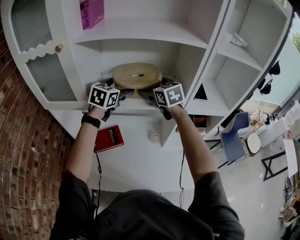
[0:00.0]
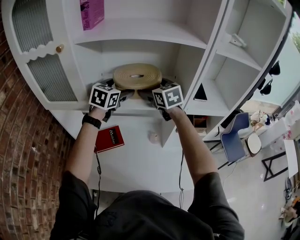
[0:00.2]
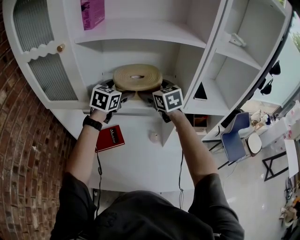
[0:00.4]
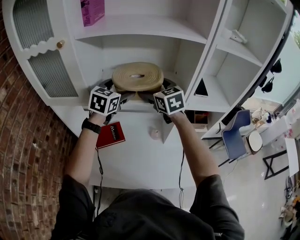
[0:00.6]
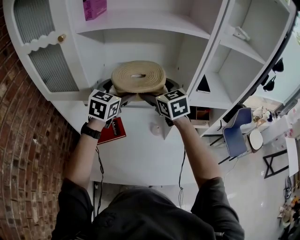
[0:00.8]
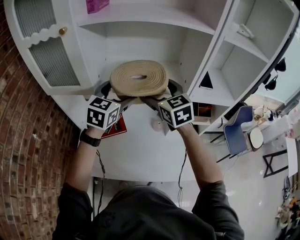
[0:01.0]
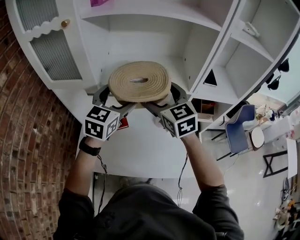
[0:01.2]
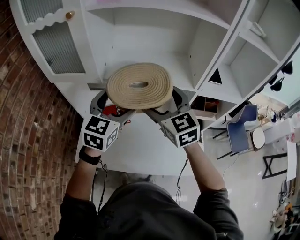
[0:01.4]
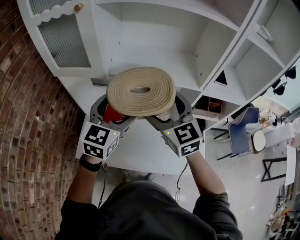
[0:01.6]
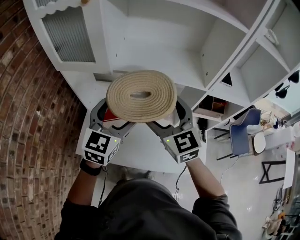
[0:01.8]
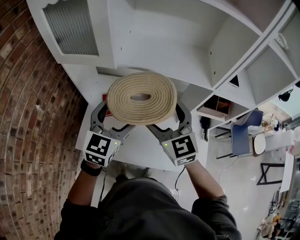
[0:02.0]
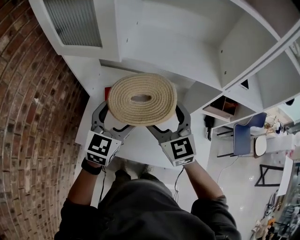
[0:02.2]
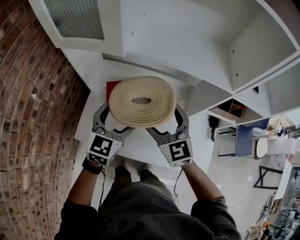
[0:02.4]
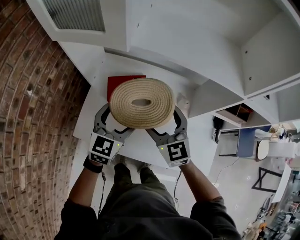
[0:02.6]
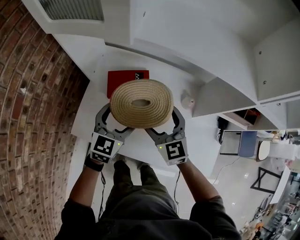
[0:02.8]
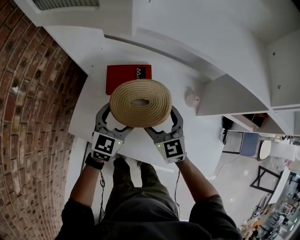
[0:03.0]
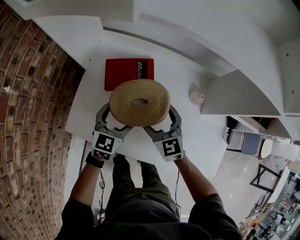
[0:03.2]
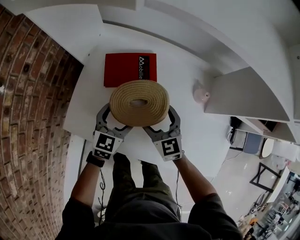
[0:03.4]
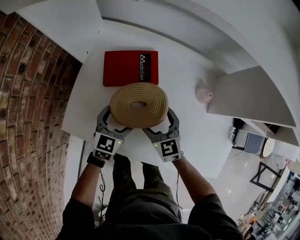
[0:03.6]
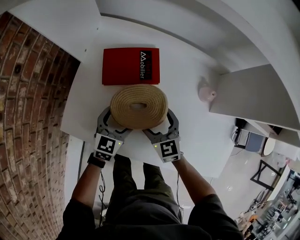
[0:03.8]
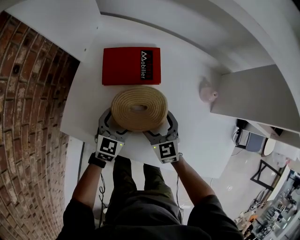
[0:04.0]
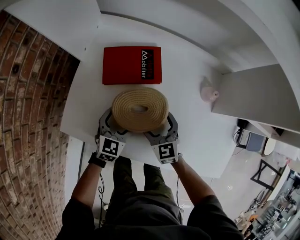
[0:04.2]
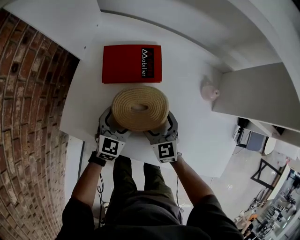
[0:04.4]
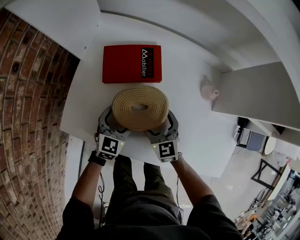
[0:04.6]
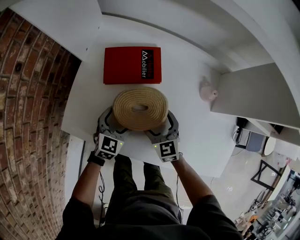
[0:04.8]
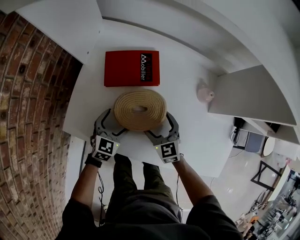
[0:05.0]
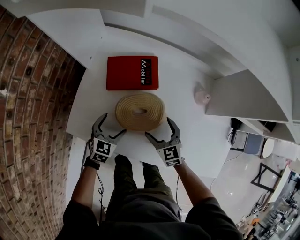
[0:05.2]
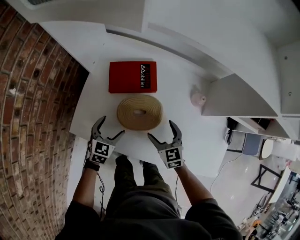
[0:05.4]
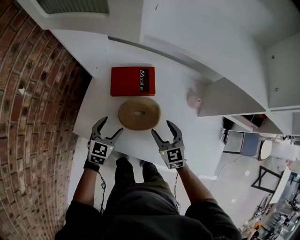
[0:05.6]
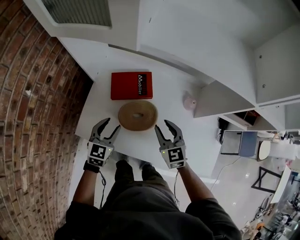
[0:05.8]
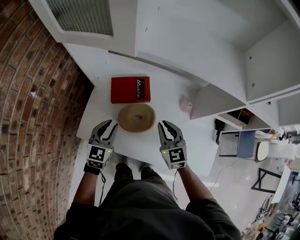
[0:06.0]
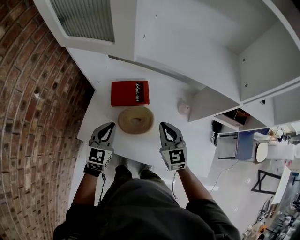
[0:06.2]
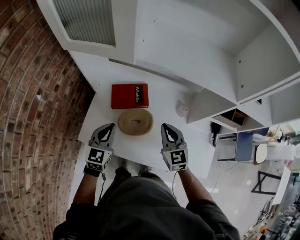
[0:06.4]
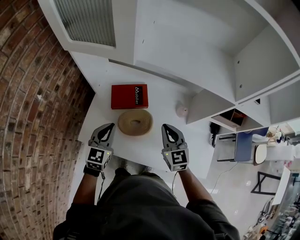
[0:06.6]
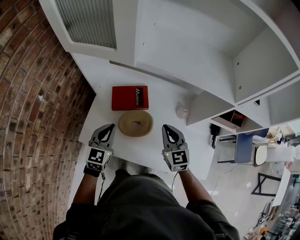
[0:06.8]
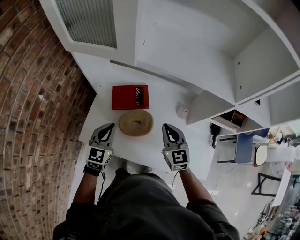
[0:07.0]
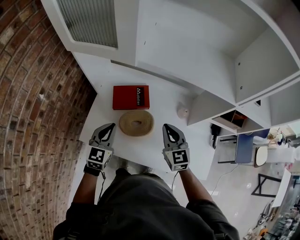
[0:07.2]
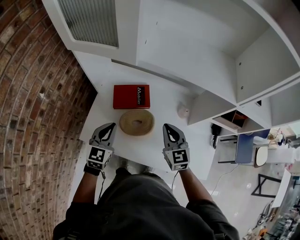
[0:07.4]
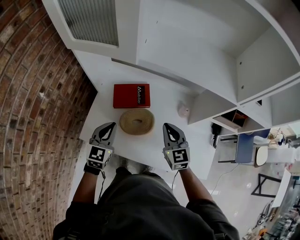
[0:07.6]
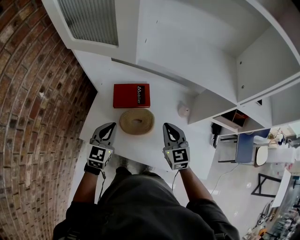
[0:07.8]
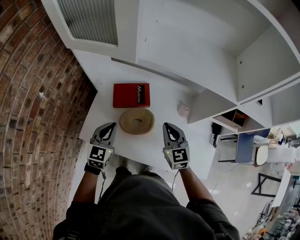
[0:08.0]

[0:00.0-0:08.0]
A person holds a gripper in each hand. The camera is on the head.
0:00.0 to 0:01.6: Both grippers move backward, about 20 cm.
0:01.6 to 0:03.2: Both grippers travel together downward, about 35 cm.
0:03.2 to 0:04.8: The grippers both shift downward by some 15 cm.
0:04.8 to 0:06.4: The two grippers go roughly 25 cm upward. The right gripper closes its fingers. Meanwhile the left gripper closes.
0:06.4 to 0:08.0: The two grippers keep their place.

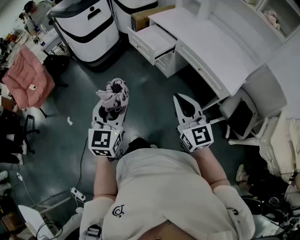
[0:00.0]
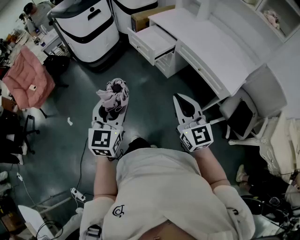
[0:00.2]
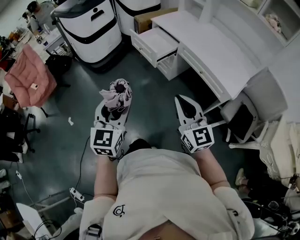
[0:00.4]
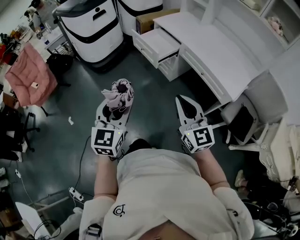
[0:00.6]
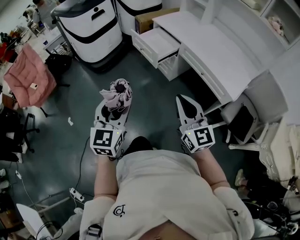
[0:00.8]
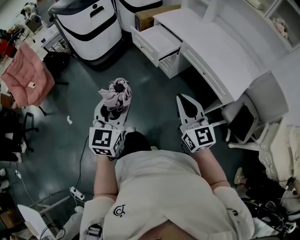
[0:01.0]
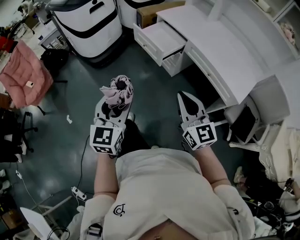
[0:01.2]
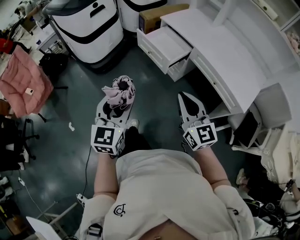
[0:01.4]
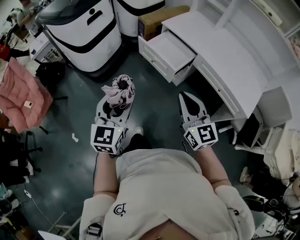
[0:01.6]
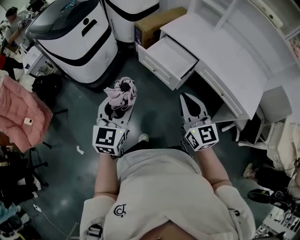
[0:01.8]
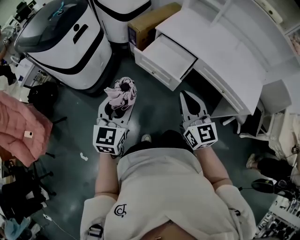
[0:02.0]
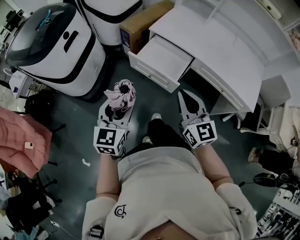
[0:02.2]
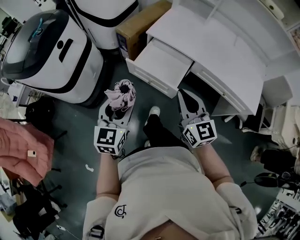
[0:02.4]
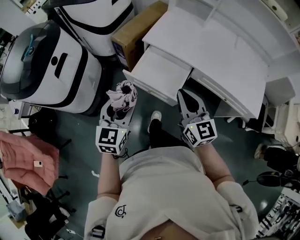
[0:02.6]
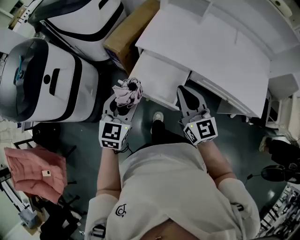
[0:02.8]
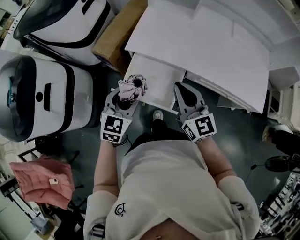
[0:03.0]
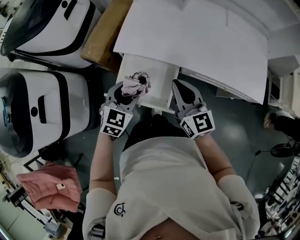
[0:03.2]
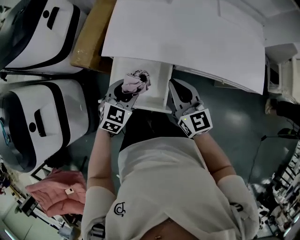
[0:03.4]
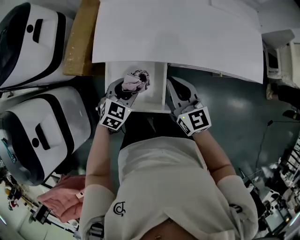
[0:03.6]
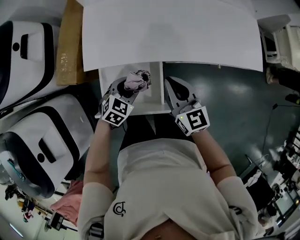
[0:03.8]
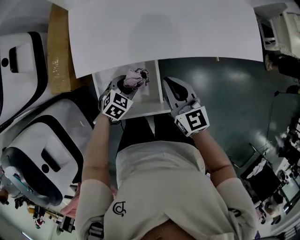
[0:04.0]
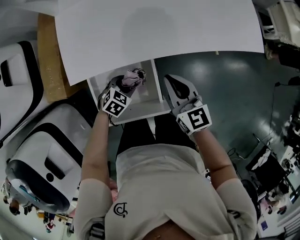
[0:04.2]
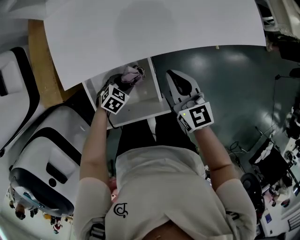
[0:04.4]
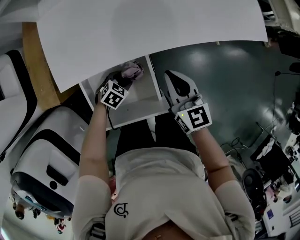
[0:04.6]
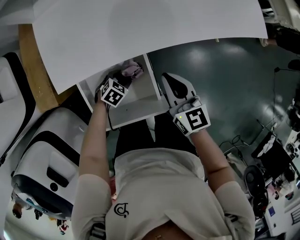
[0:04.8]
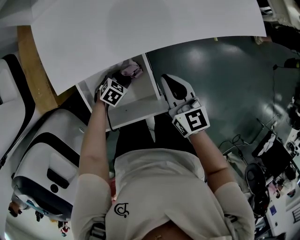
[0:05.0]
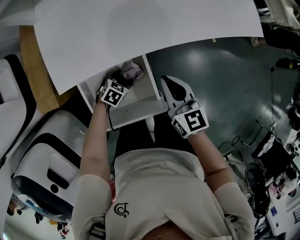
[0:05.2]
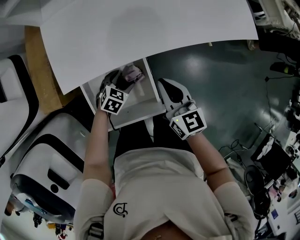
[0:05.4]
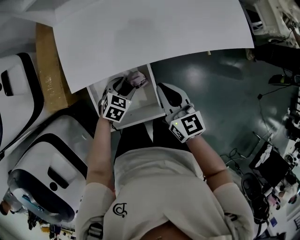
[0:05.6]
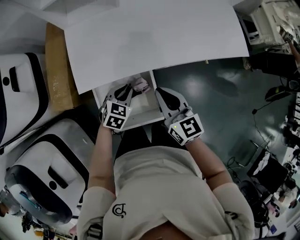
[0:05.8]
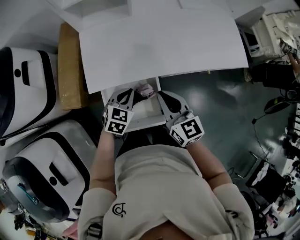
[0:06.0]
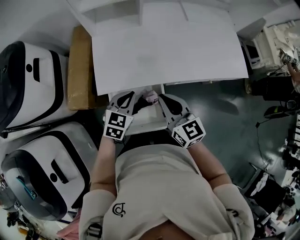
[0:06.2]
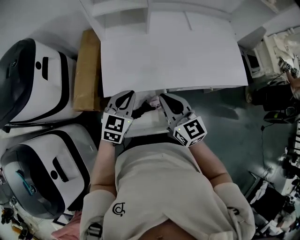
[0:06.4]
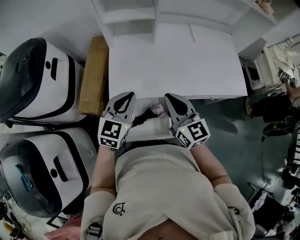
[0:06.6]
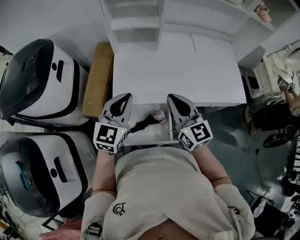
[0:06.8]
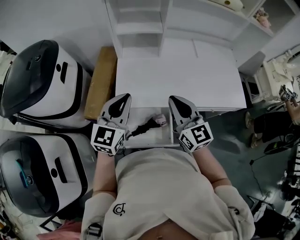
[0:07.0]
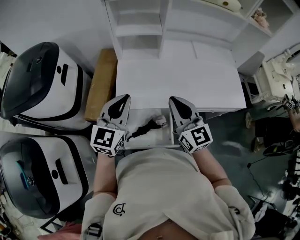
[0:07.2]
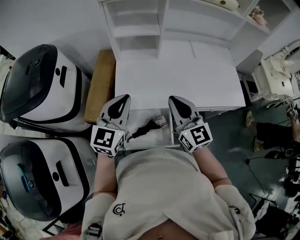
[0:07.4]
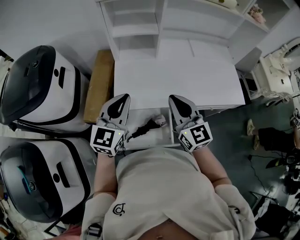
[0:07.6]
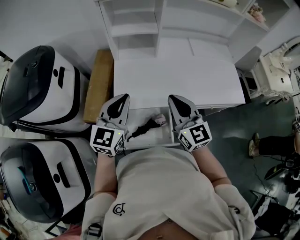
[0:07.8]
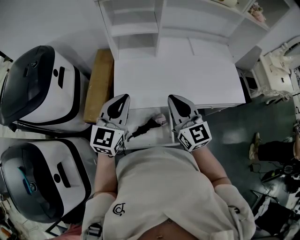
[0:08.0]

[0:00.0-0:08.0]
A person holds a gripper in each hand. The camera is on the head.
0:00.0 to 0:01.6: The grippers both shift forward and to the left by some 30 cm.
0:01.6 to 0:03.2: The left gripper ends up about 50 cm from where it was, and swivels approximately 50 degrees, while the right gripper moves approximately 40 cm, and swivels some 30 degrees.
0:03.2 to 0:04.8: The right gripper travels downward by roughly 15 cm, and changes its angle by approximately 30 degrees; the left gripper heads downward, covering roughly 35 cm, and tilts its fingers about 30 degrees downward.
0:04.8 to 0:06.4: The right gripper heads upward, covering about 20 cm, and swivels some 20 degrees; the left gripper heads upward, covering about 40 cm, tilts its fingers some 40 degrees upward, and closes its fingers.
0:06.4 to 0:08.0: The right gripper is displaced upward by some 10 cm. The left gripper travels upward and to the left by some 15 cm, and swivels about 20 degrees.

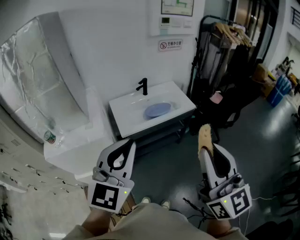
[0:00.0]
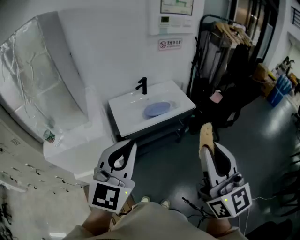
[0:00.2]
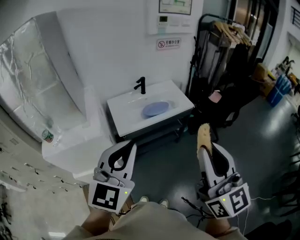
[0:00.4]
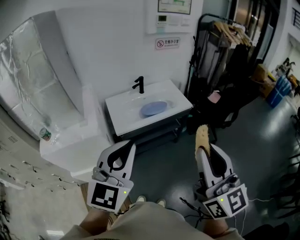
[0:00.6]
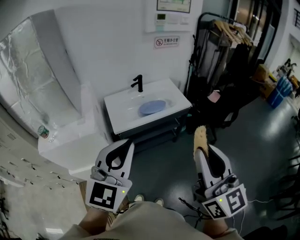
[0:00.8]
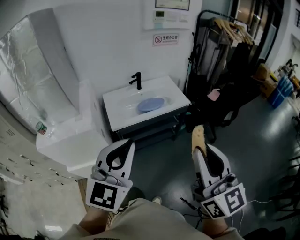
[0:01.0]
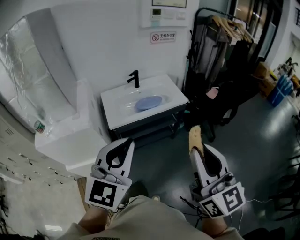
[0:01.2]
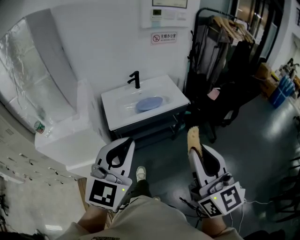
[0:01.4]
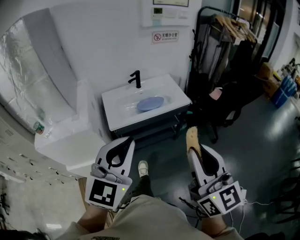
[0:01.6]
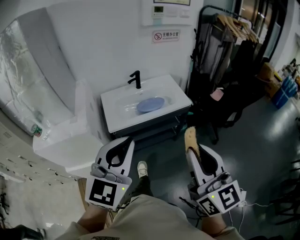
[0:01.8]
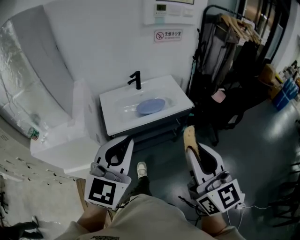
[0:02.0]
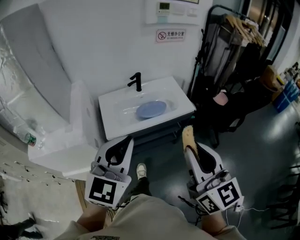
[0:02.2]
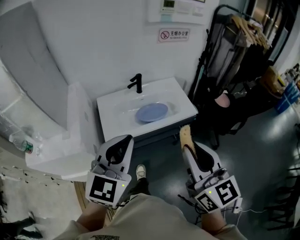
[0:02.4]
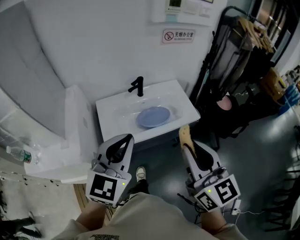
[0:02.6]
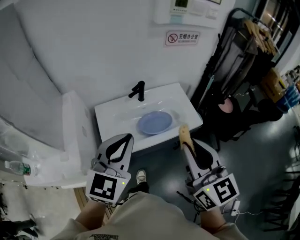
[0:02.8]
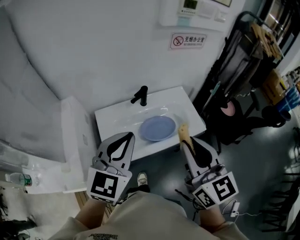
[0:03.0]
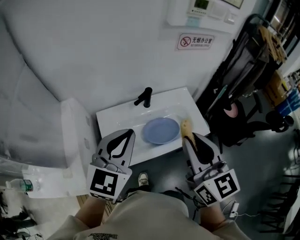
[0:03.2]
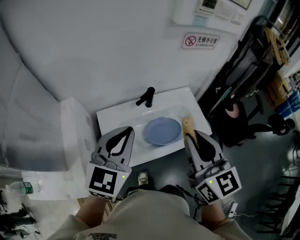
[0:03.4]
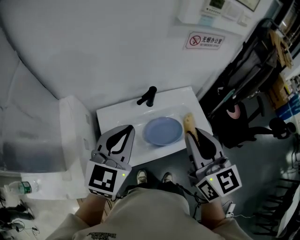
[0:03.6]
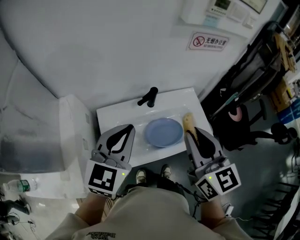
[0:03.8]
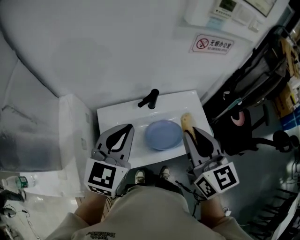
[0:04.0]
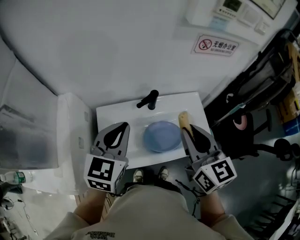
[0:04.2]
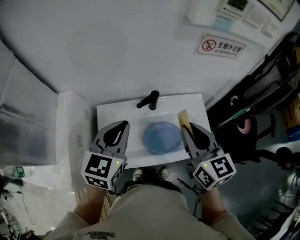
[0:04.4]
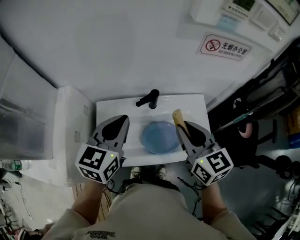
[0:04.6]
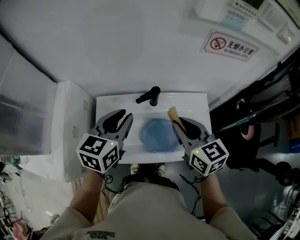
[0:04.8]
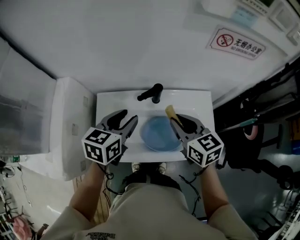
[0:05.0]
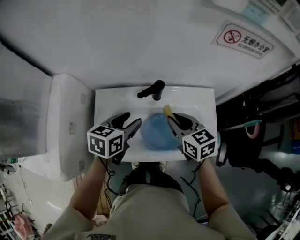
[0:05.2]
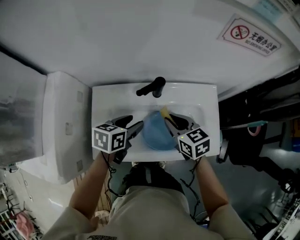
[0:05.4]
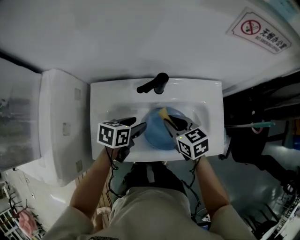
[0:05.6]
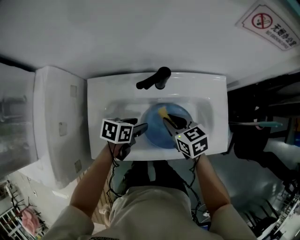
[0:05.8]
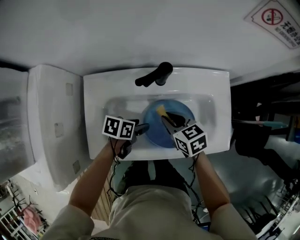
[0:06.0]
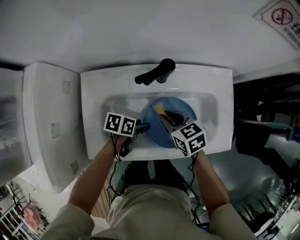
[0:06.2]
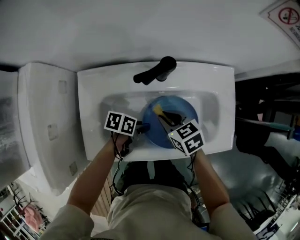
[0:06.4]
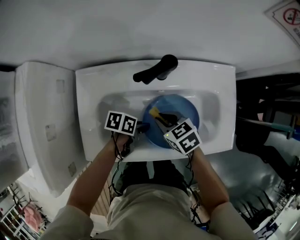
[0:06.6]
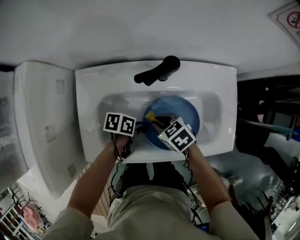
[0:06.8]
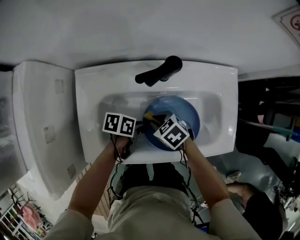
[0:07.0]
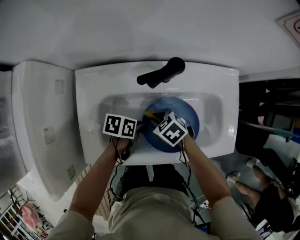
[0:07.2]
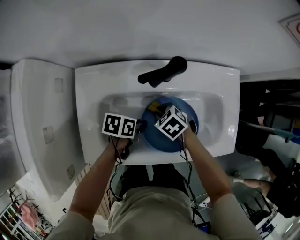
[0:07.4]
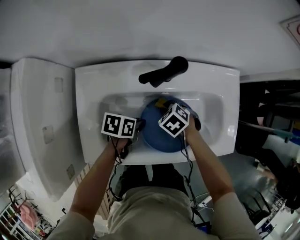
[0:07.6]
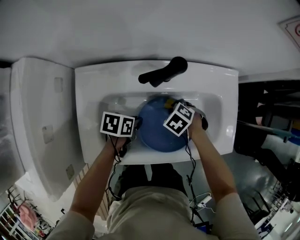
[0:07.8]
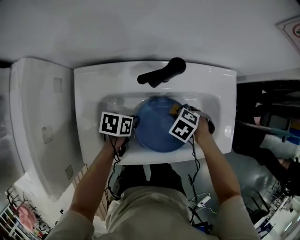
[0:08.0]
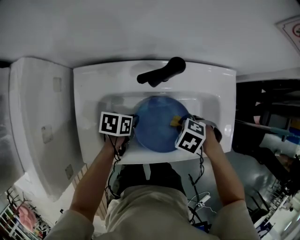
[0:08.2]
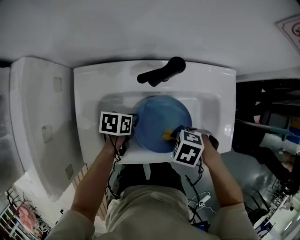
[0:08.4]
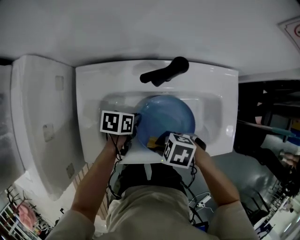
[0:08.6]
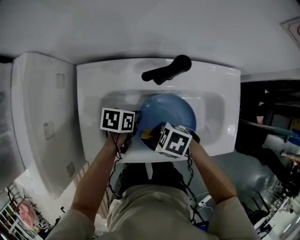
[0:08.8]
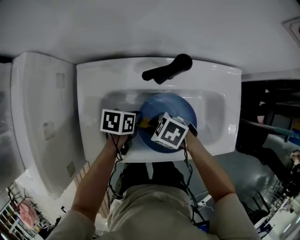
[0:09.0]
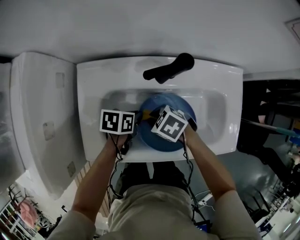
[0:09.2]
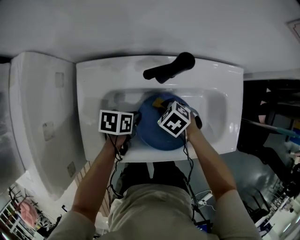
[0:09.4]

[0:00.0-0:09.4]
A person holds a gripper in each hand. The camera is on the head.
0:00.0 to 0:01.6: The right gripper heads to the right and downward, covering about 10 cm; the left gripper goes some 10 cm to the right.
0:01.6 to 0:03.2: The two grippers travel together, forward, some 40 cm.
0:03.2 to 0:04.8: The two grippers go some 20 cm forward and downward. The left gripper rotates about 30 degrees, and opens up. The right gripper swivels about 30 degrees.
0:04.8 to 0:06.2: Both grippers travel together downward, roughly 35 cm. The right gripper swivels approximately 30 degrees; the left gripper turns by approximately 60 degrees, and opens up.
0:06.2 to 0:07.8: The right gripper heads downward, covering approximately 15 cm, and points its fingers roughly 40 degrees further downward, while the left gripper closes its fingers.
0:07.8 to 0:09.4: The right gripper goes upward and returns, approximately 10 cm each way.
